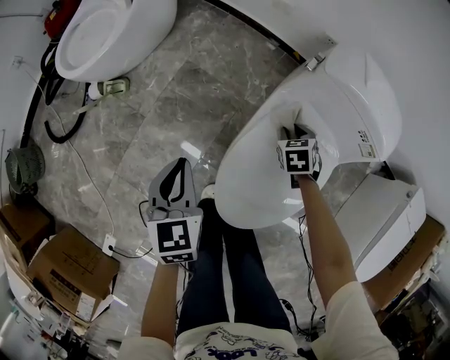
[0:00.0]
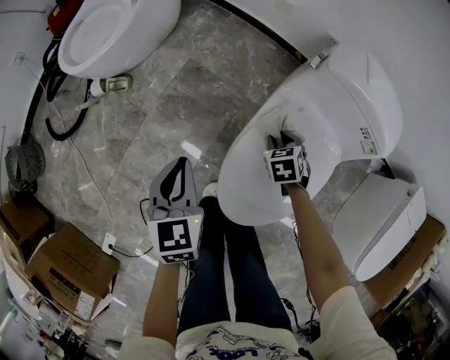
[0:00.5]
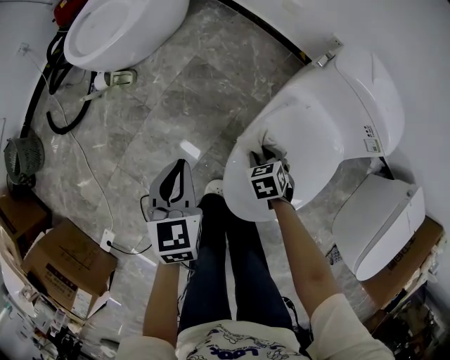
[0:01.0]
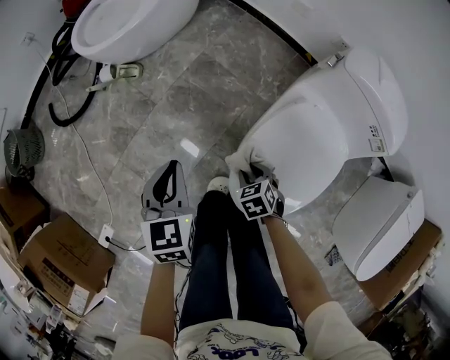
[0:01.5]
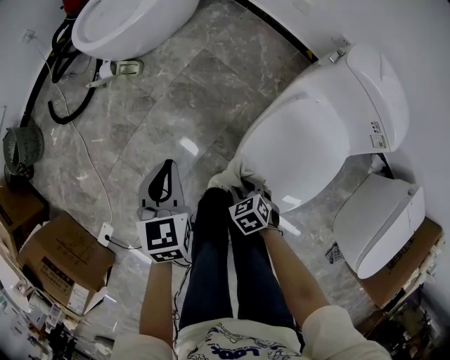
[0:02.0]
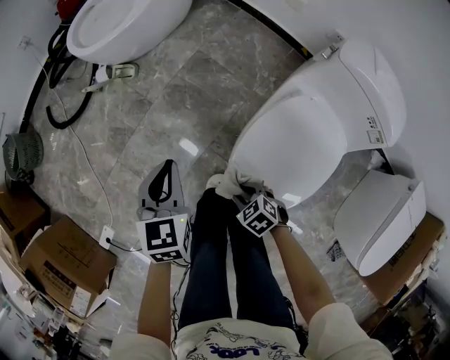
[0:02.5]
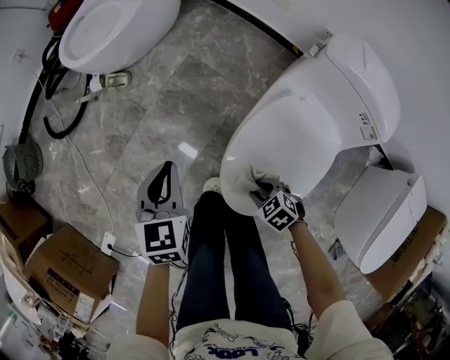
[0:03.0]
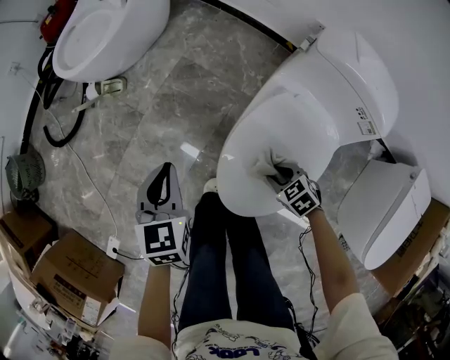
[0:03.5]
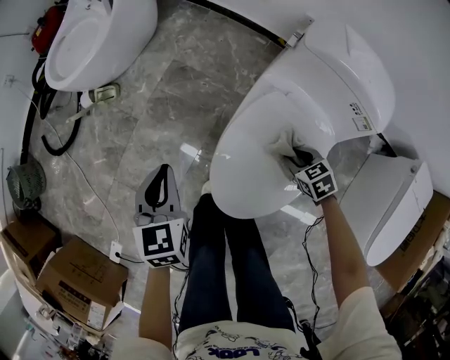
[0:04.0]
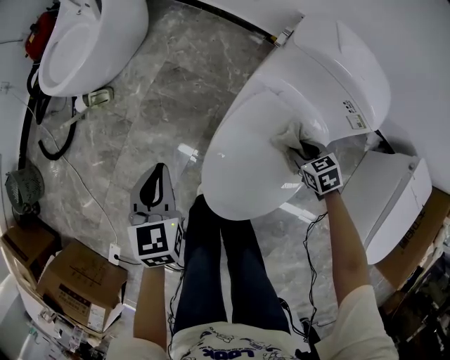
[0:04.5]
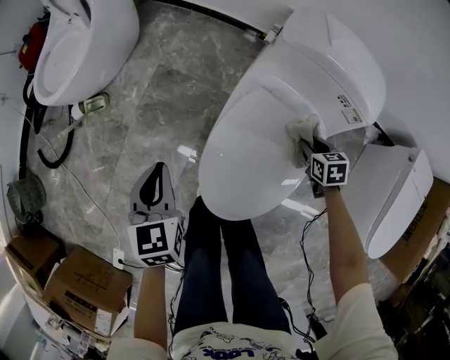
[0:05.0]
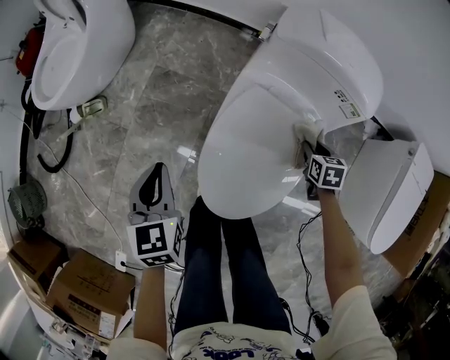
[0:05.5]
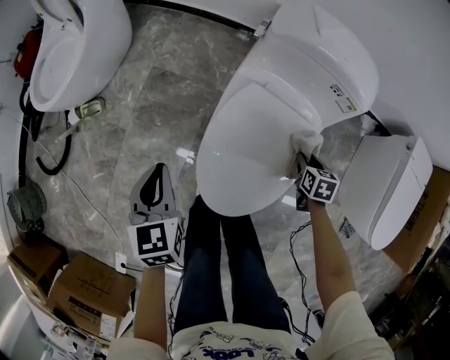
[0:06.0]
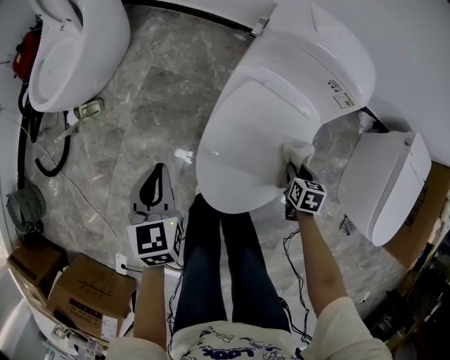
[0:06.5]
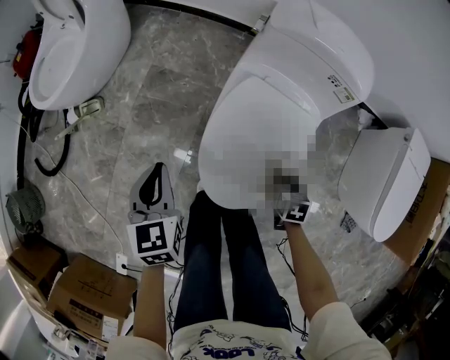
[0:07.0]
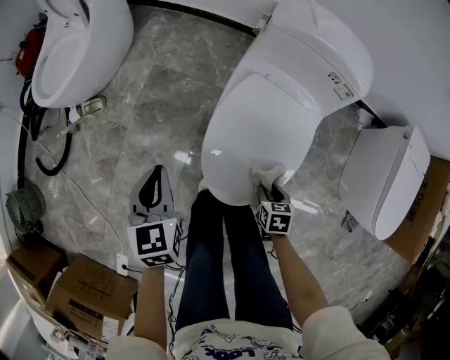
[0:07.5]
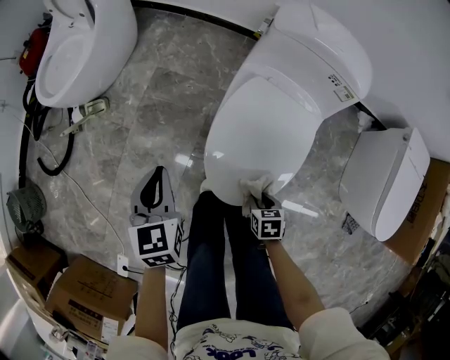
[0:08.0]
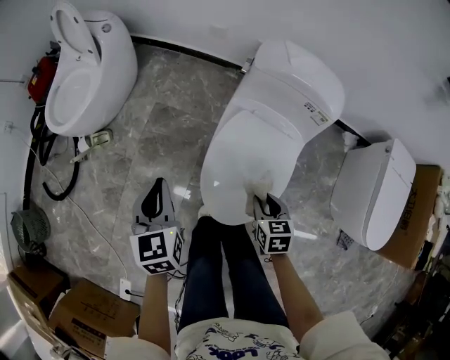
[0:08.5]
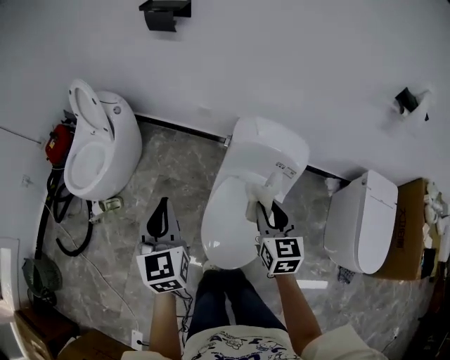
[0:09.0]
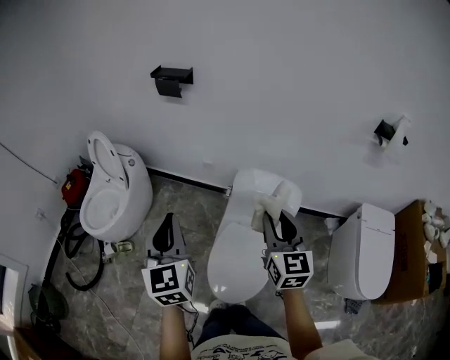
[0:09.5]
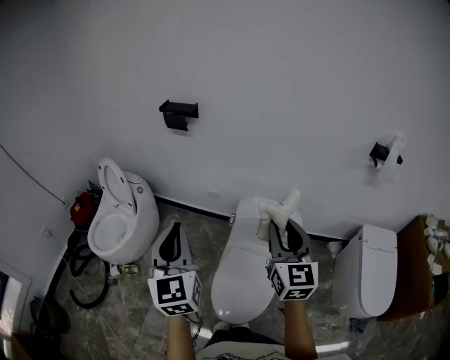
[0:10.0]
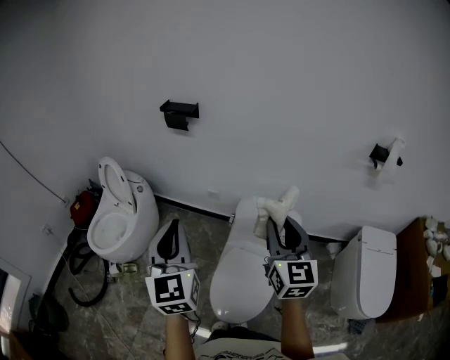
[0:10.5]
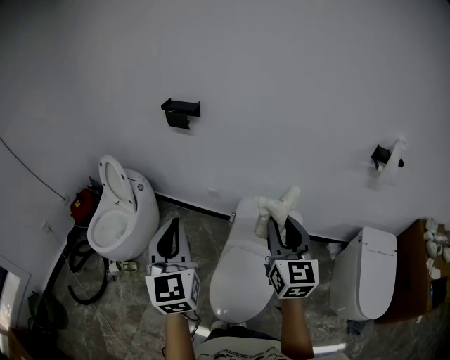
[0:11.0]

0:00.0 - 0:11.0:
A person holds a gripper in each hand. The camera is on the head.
0:00.0 - 0:02.0: The right gripper ends up some 35 cm from where it was, and rotates approximately 30 degrees; the left gripper moves approximately 15 cm.
0:02.0 - 0:03.5: The right gripper heads to the right, covering roughly 15 cm; the left gripper shifts some 5 cm to the right.
0:03.5 - 0:05.5: The left gripper shifts by roughly 5 cm. The right gripper shifts by some 25 cm, and rotates around the line of its fingers by approximately 50 degrees, clockwise from behind.
0:05.5 - 0:07.5: The left gripper goes about 5 cm backward; the right gripper travels backward and to the left by approximately 25 cm.
0:07.5 - 0:09.0: The right gripper goes approximately 50 cm upward and forward, and angles its fingers upward, by some 40 degrees. The left gripper moves upward, about 30 cm, and swivels about 20 degrees.
0:09.0 - 0:11.0: Both grippers move upward, some 25 cm. The right gripper rotates about 20 degrees.

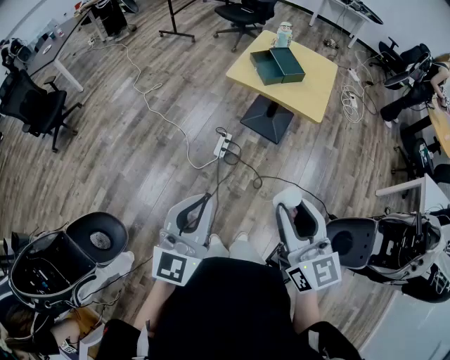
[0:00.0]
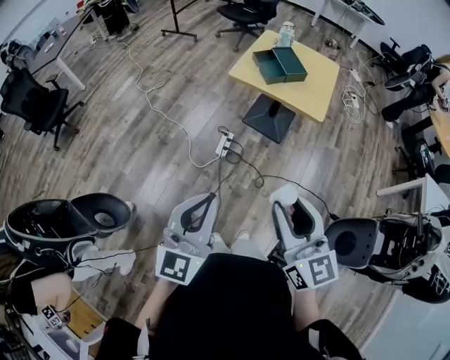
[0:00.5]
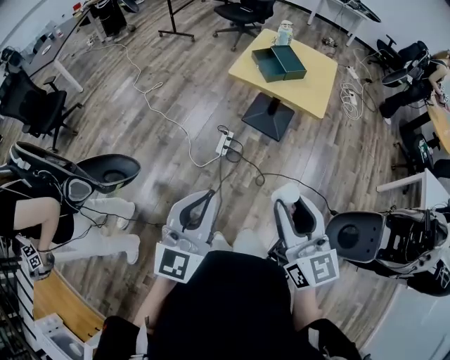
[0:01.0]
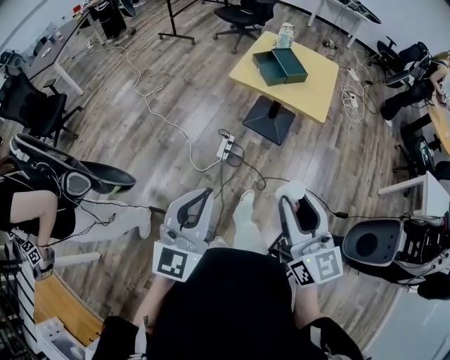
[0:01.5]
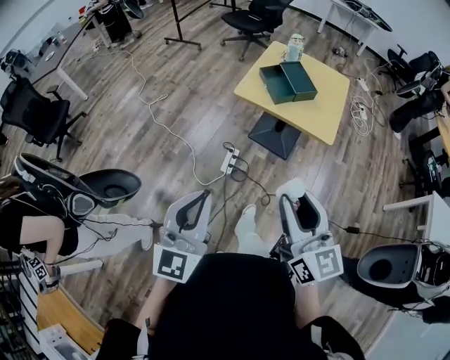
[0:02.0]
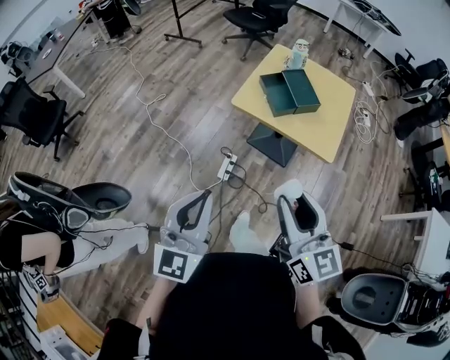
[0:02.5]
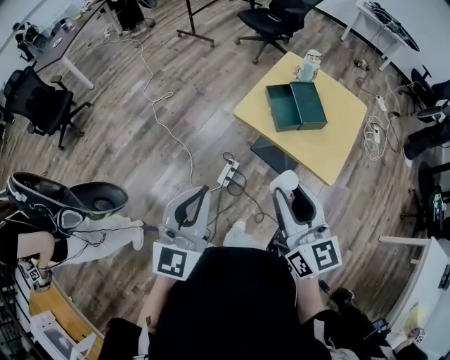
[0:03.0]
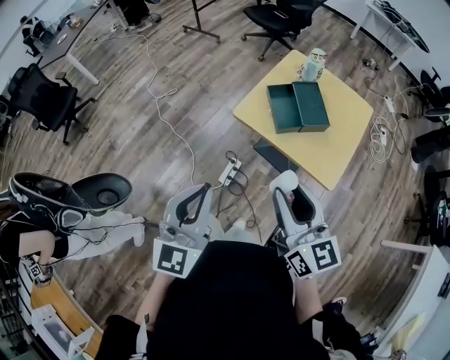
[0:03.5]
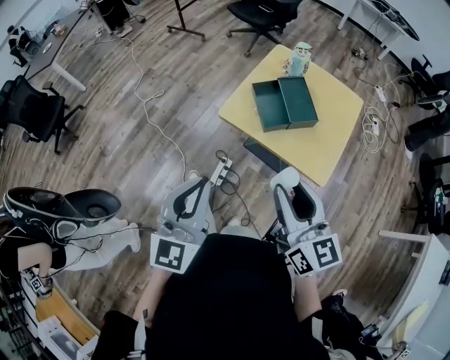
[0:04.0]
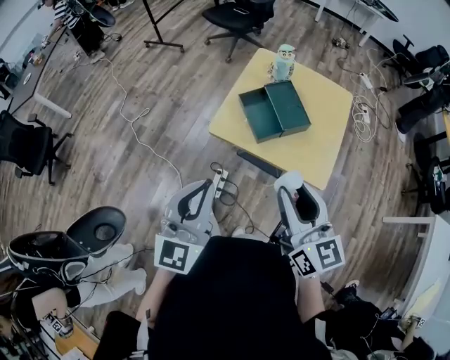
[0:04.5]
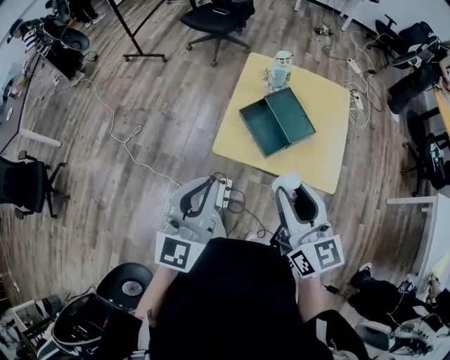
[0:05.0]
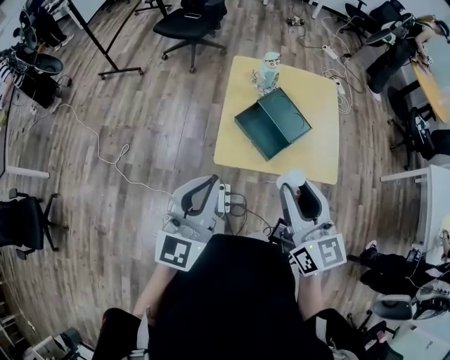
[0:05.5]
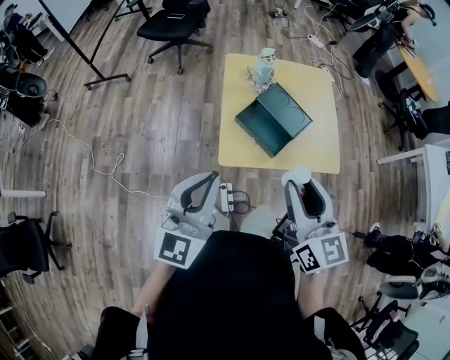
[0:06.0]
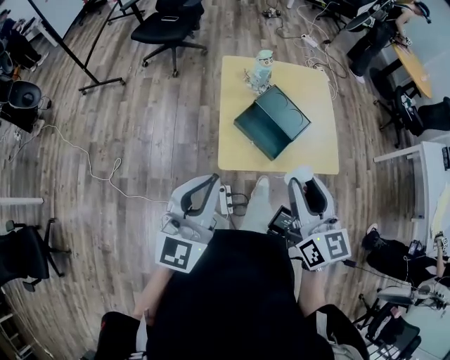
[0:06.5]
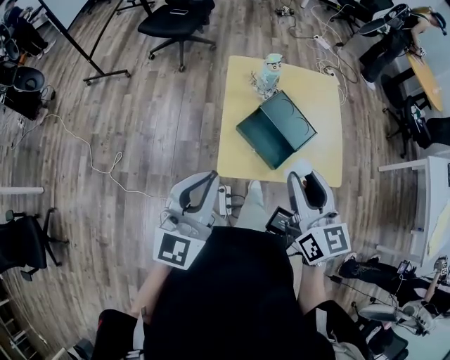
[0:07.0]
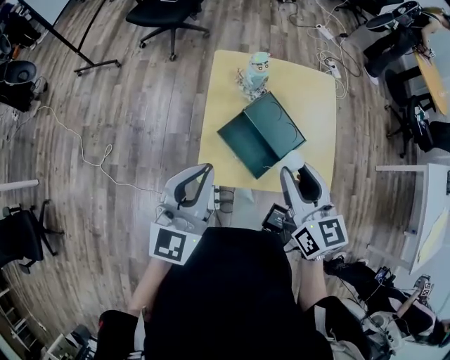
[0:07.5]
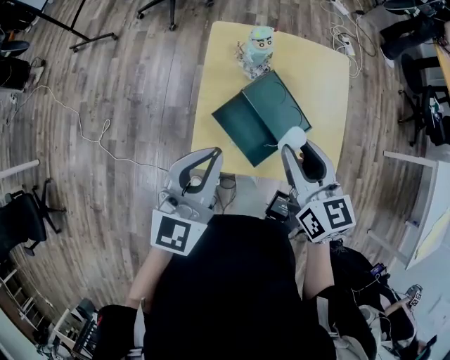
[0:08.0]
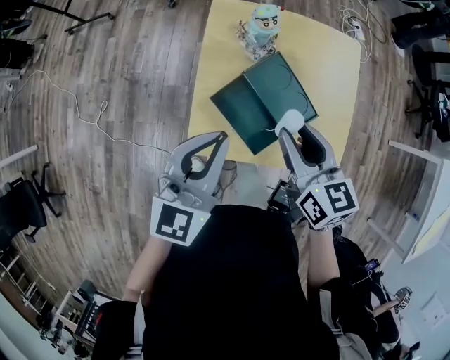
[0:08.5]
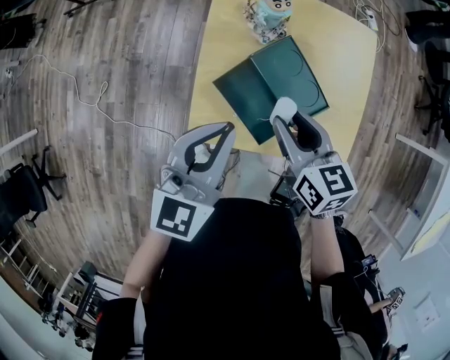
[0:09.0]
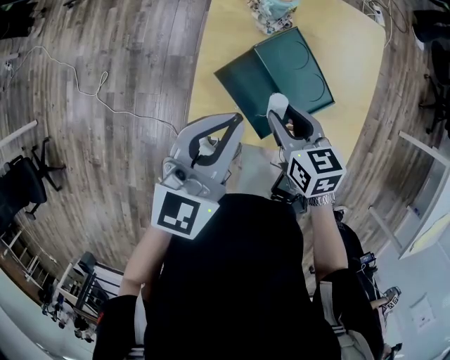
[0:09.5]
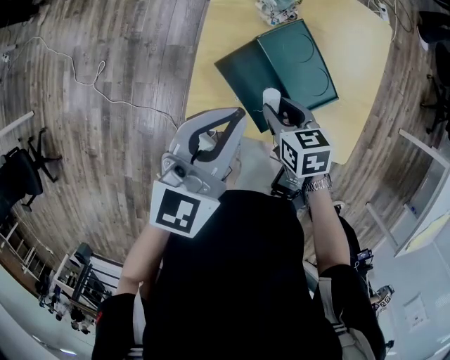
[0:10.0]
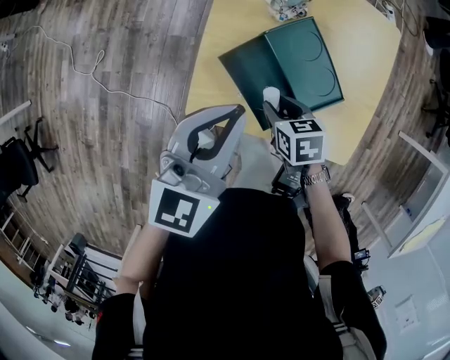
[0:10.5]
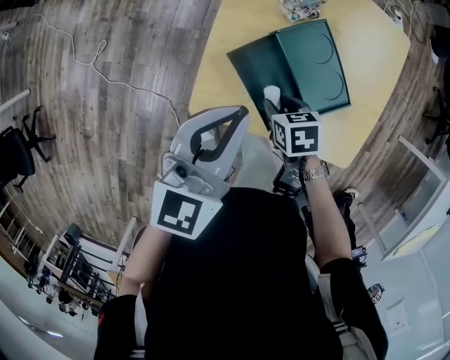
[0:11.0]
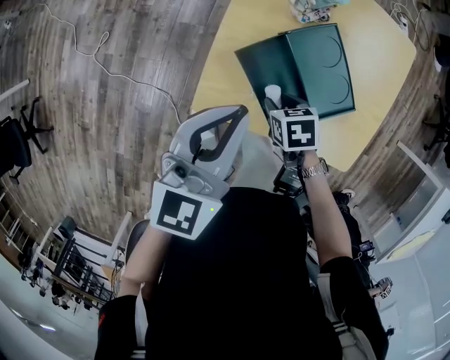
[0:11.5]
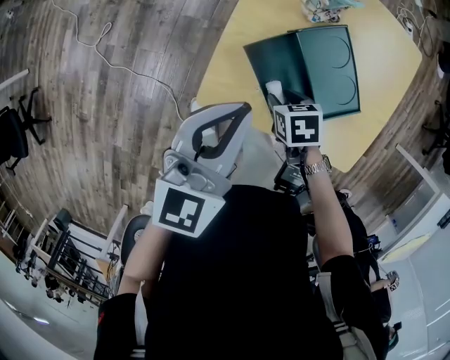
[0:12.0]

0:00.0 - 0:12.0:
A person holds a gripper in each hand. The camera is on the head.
0:00.0 - 0:02.0: The grippers both shift forward by approximately 15 cm.
0:02.0 - 0:04.0: The grippers both shift forward and to the right by approximately 30 cm.
0:04.0 - 0:06.0: The left gripper changes place by approximately 30 cm, and swivels about 40 degrees, while the right gripper ends up approximately 20 cm from where it was, and swivels about 40 degrees.
0:06.0 - 0:08.0: The left gripper shifts some 20 cm forward and to the right, while the right gripper heads forward and downward, covering roughly 25 cm.
0:08.0 - 0:10.0: The left gripper heads downward, covering some 5 cm. The right gripper heads downward, covering roughly 20 cm, and swivels some 40 degrees.
0:10.0 - 0:12.0: The left gripper shifts by roughly 5 cm. The right gripper heads downward, covering some 10 cm, and rotates about 20 degrees.

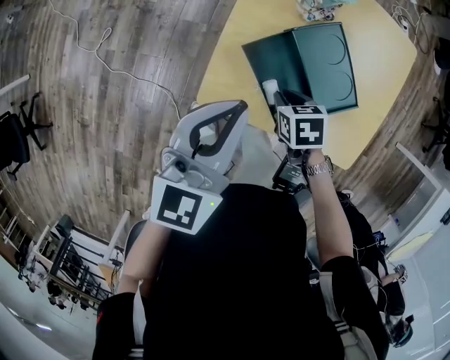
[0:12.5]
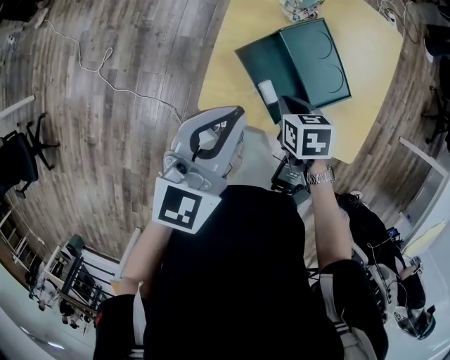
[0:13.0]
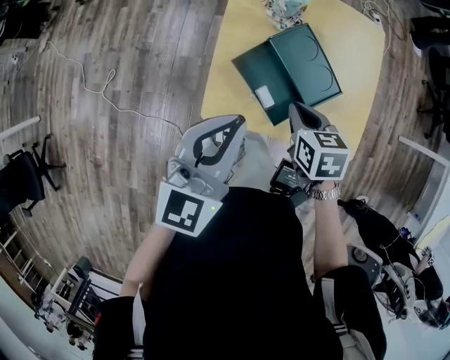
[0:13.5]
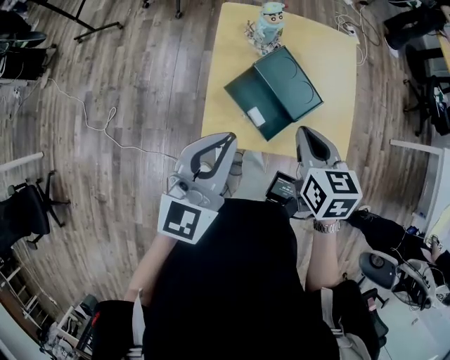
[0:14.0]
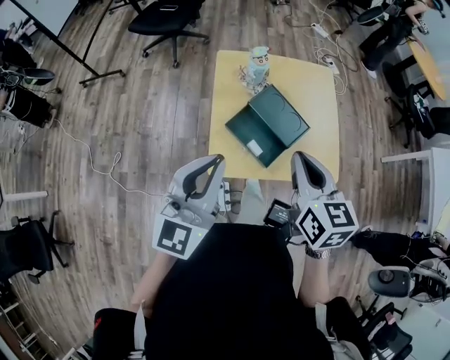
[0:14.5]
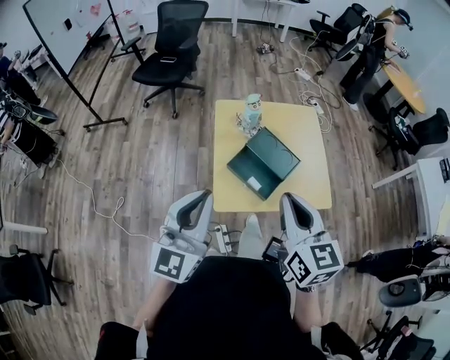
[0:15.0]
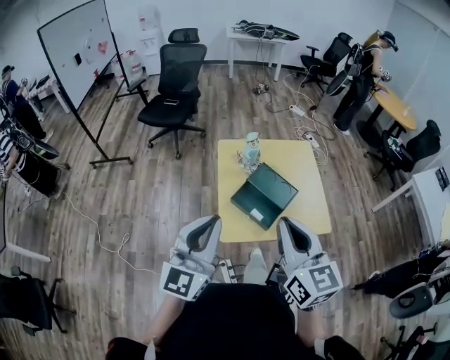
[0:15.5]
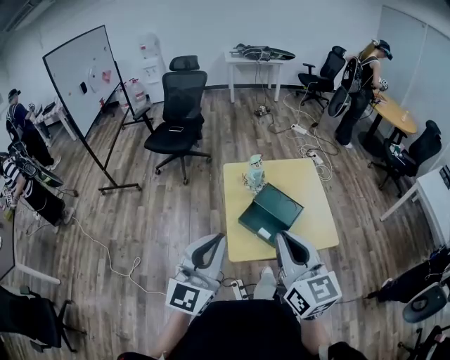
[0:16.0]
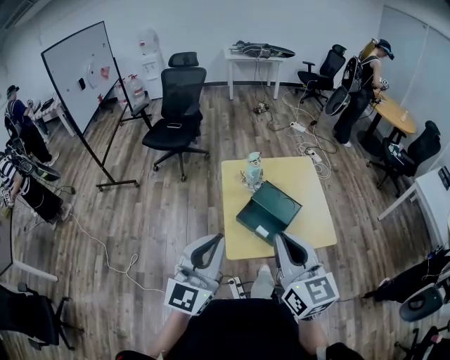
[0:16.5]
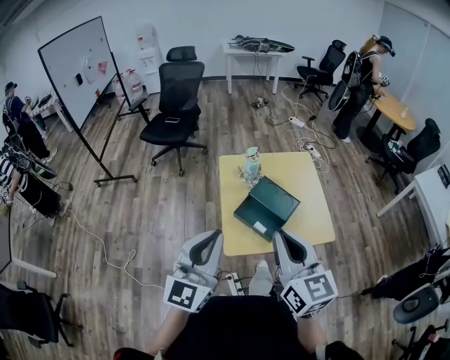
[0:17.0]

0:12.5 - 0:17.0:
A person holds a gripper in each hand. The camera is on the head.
0:12.5 - 0:14.5: The right gripper goes some 35 cm upward, and points its fingers some 40 degrees further upward; the left gripper moves upward, roughly 15 cm, and swivels some 20 degrees.
0:14.5 - 0:17.0: The left gripper is displaced upward and backward by some 10 cm; the right gripper heads upward, backward and to the left, covering approximately 20 cm, and changes its angle by roughly 20 degrees.
